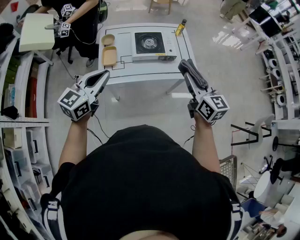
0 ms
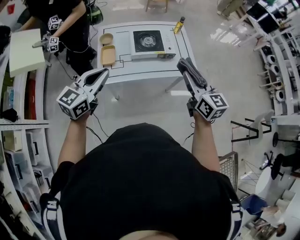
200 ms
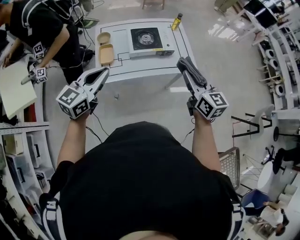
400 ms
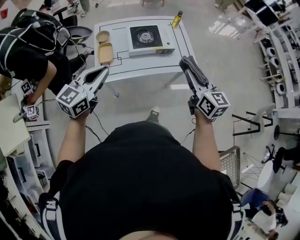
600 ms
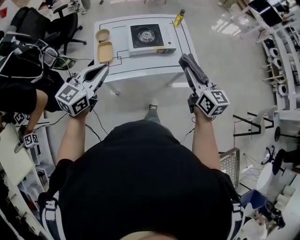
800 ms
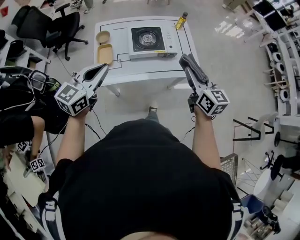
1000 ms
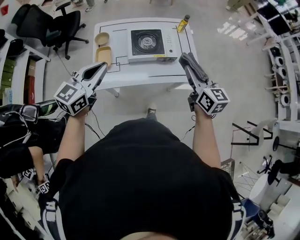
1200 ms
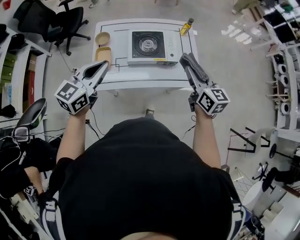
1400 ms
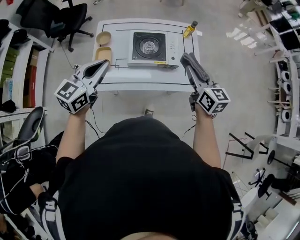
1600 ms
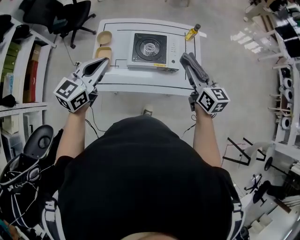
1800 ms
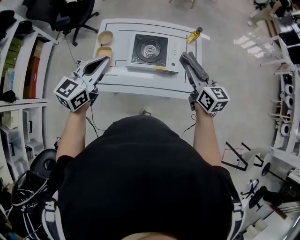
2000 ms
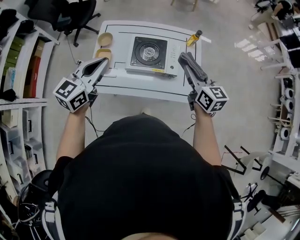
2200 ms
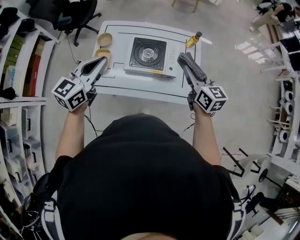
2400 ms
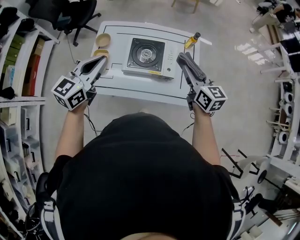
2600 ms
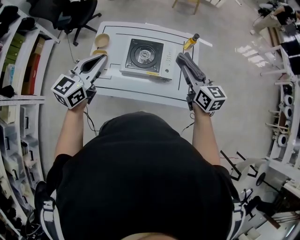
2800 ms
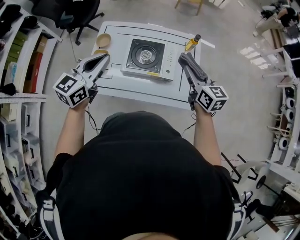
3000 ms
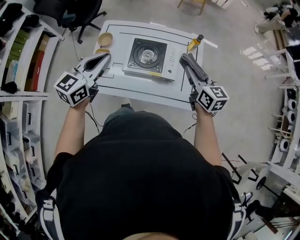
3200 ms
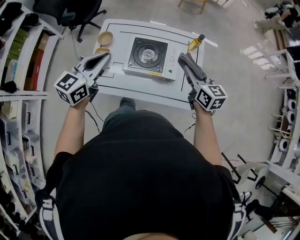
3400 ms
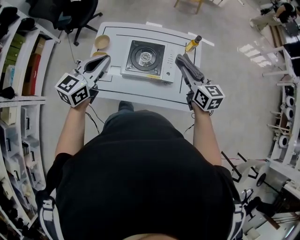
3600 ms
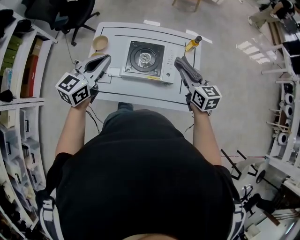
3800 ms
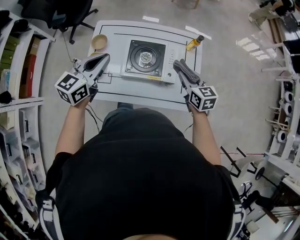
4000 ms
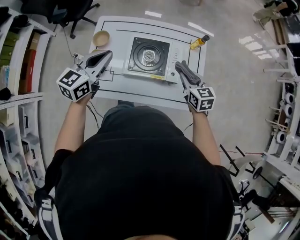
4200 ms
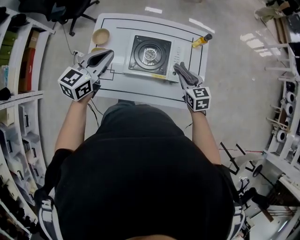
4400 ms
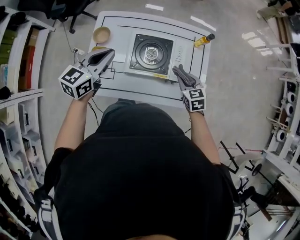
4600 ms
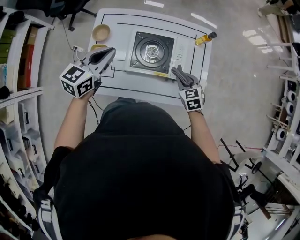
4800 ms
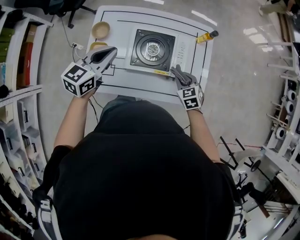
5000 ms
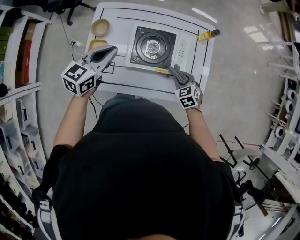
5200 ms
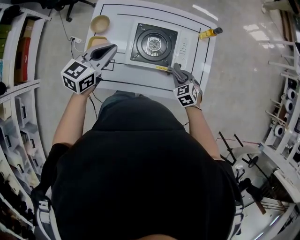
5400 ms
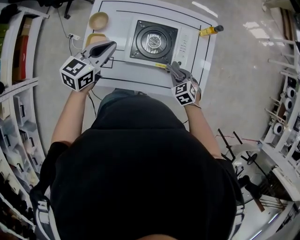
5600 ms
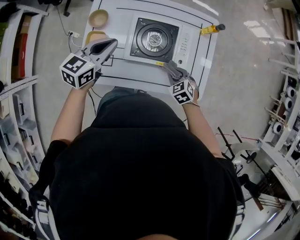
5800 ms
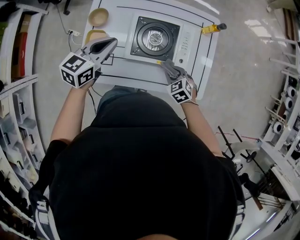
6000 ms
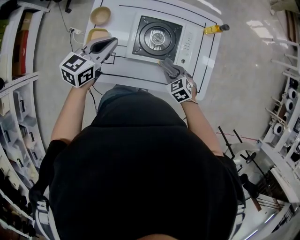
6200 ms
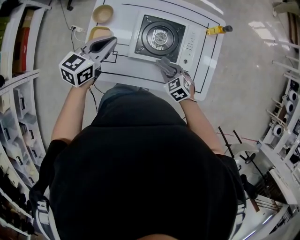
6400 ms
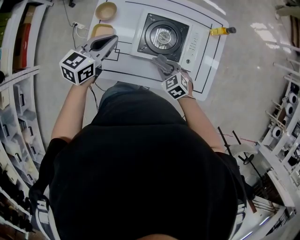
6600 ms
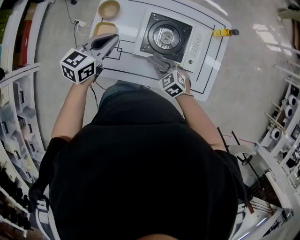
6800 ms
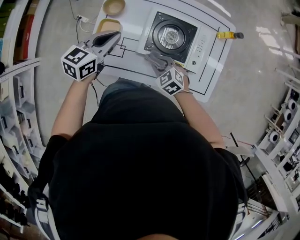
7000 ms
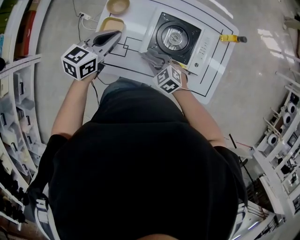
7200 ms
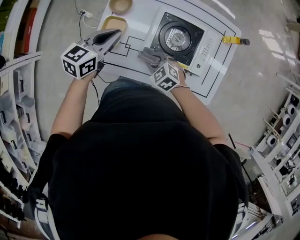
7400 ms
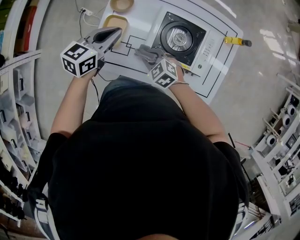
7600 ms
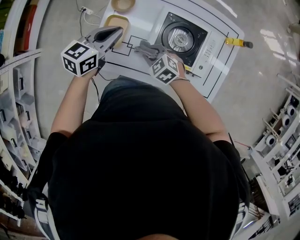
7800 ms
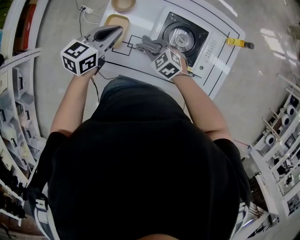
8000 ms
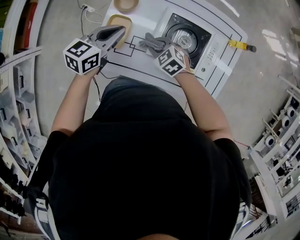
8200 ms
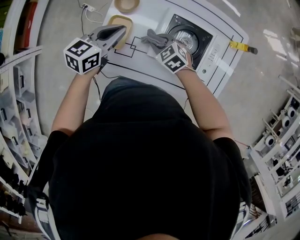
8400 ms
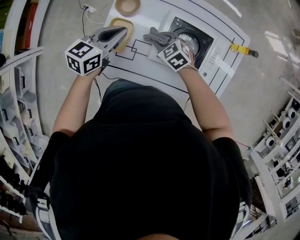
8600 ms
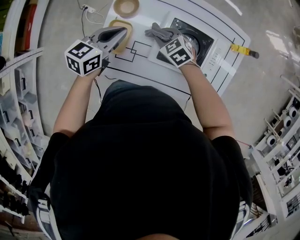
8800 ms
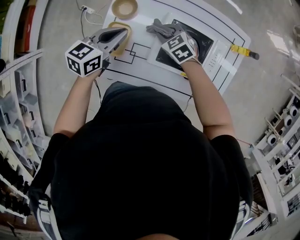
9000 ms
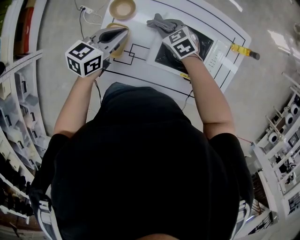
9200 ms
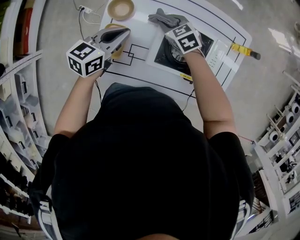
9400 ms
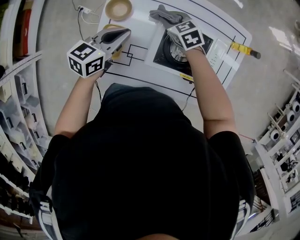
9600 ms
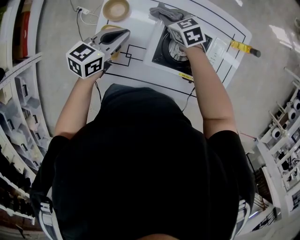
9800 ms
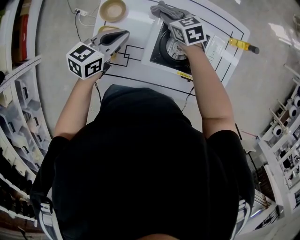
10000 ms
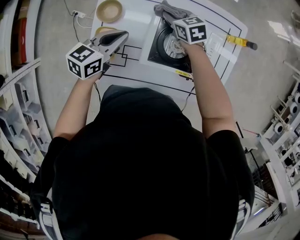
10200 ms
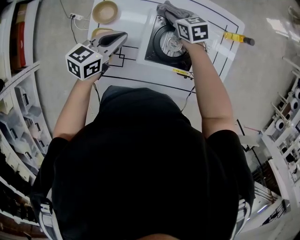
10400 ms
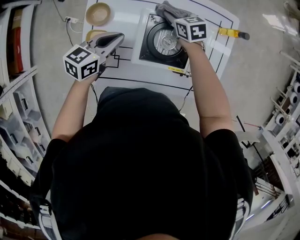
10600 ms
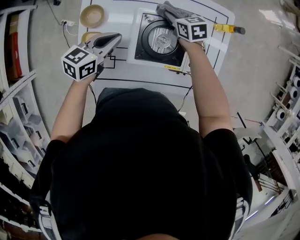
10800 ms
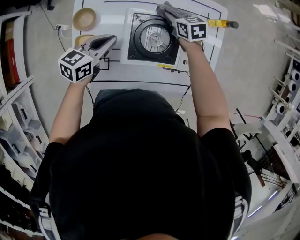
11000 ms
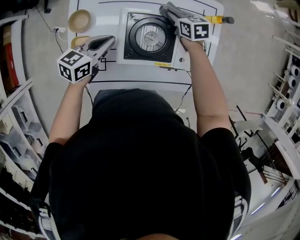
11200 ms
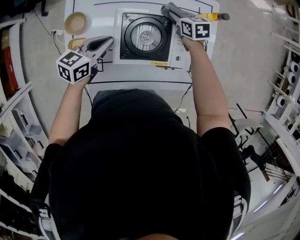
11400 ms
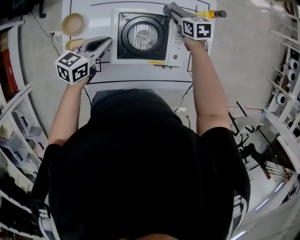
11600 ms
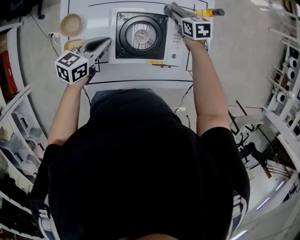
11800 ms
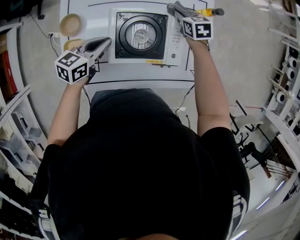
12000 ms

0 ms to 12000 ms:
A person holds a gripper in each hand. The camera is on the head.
0 ms to 1600 ms: Both grippers move forward, roughly 25 cm.
1600 ms to 3000 ms: Both grippers move forward and to the right, about 10 cm.
3000 ms to 4400 ms: The right gripper shifts approximately 15 cm downward, and changes its angle by some 30 degrees. The left gripper heads forward and downward, covering about 15 cm.
4400 ms to 6000 ms: The right gripper heads downward and to the left, covering approximately 15 cm, and turns by some 30 degrees. The left gripper heads downward, covering some 10 cm.
6000 ms to 7600 ms: The left gripper is displaced to the left by roughly 10 cm. Meanwhile the right gripper heads to the left, covering about 20 cm, and rotates some 30 degrees.
7600 ms to 9000 ms: The left gripper heads forward, covering roughly 5 cm. Meanwhile the right gripper shifts about 20 cm forward.
9000 ms to 10400 ms: The left gripper shifts some 5 cm to the right, while the right gripper shifts some 15 cm to the right and forward, and turns by some 30 degrees.
10400 ms to 12000 ms: The left gripper is displaced to the right by some 10 cm, while the right gripper moves to the right, roughly 20 cm.

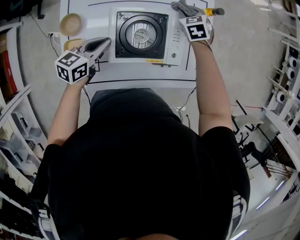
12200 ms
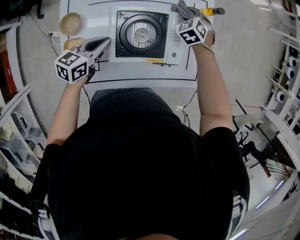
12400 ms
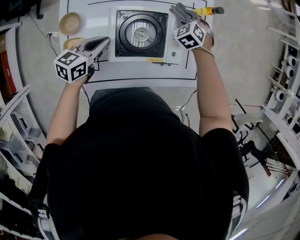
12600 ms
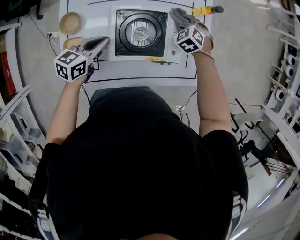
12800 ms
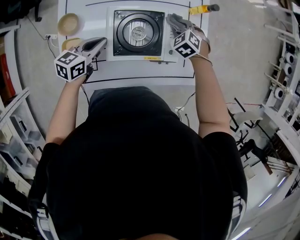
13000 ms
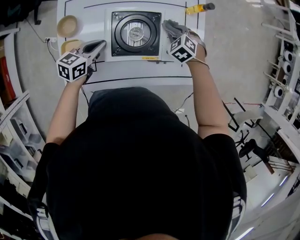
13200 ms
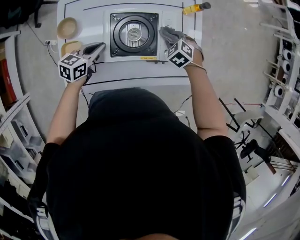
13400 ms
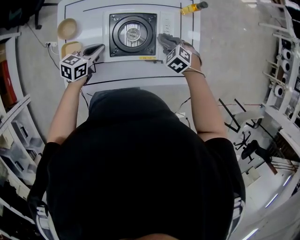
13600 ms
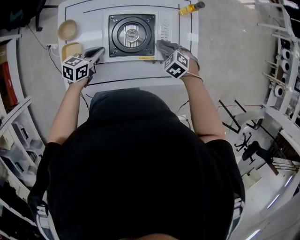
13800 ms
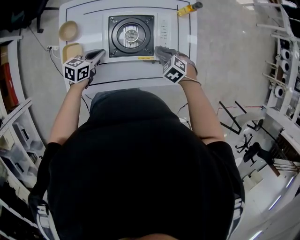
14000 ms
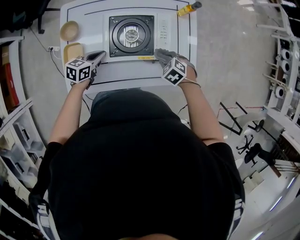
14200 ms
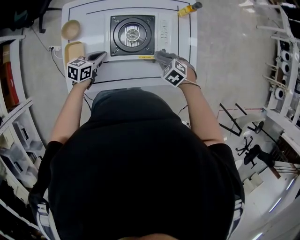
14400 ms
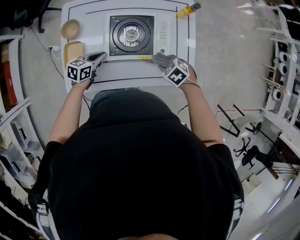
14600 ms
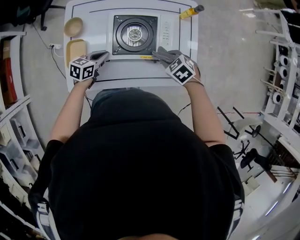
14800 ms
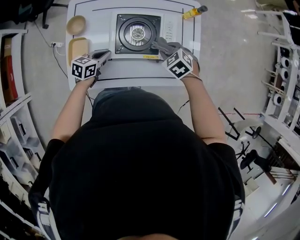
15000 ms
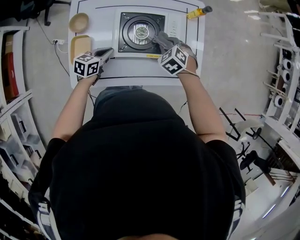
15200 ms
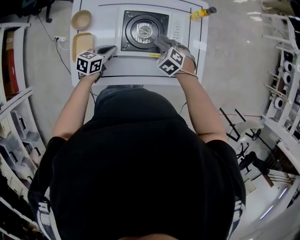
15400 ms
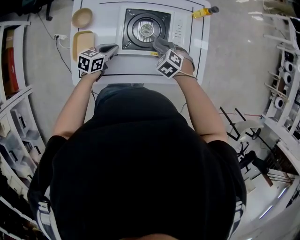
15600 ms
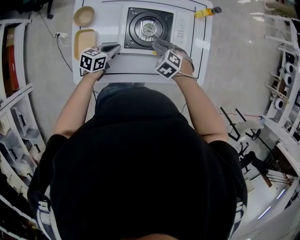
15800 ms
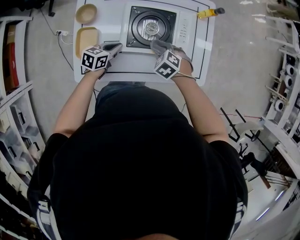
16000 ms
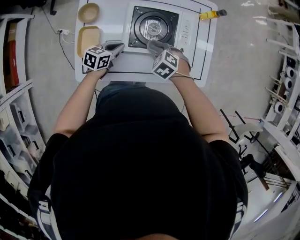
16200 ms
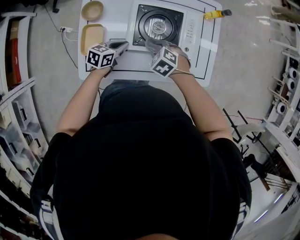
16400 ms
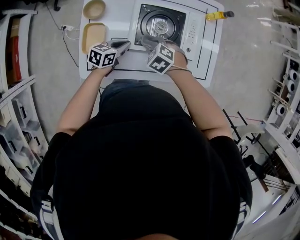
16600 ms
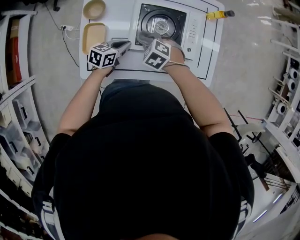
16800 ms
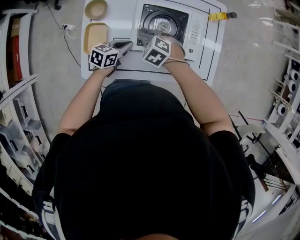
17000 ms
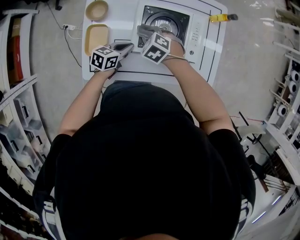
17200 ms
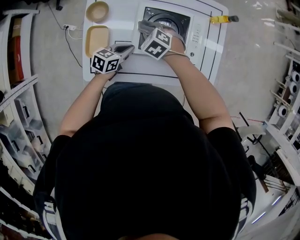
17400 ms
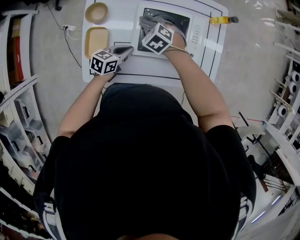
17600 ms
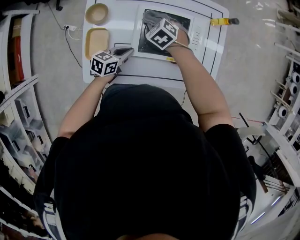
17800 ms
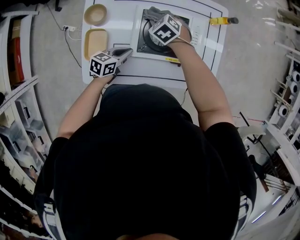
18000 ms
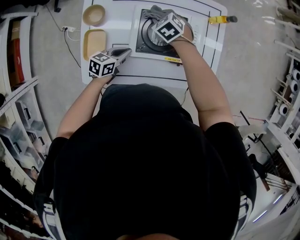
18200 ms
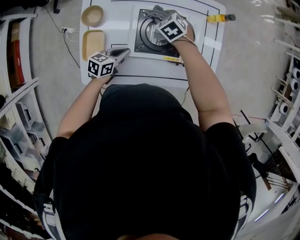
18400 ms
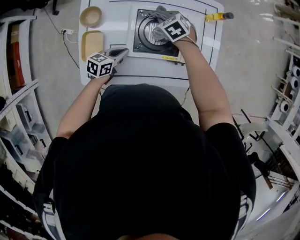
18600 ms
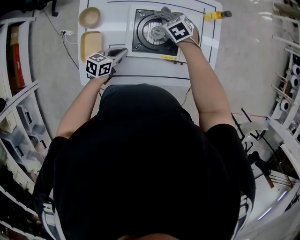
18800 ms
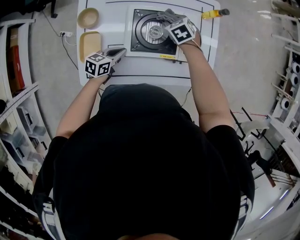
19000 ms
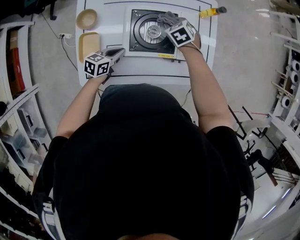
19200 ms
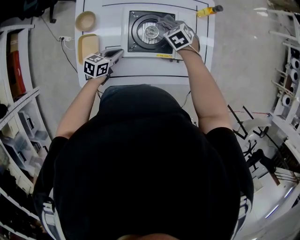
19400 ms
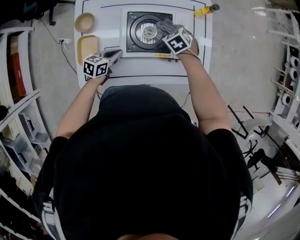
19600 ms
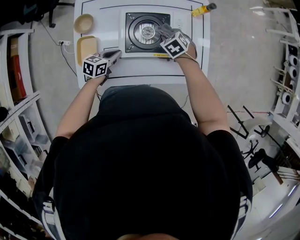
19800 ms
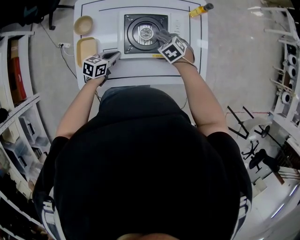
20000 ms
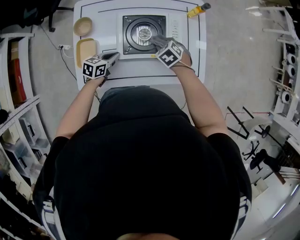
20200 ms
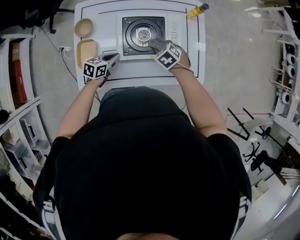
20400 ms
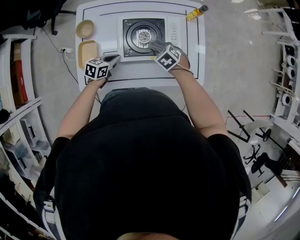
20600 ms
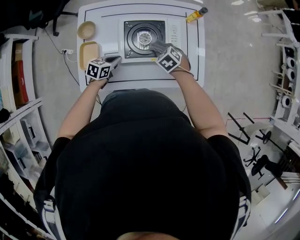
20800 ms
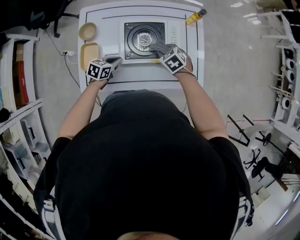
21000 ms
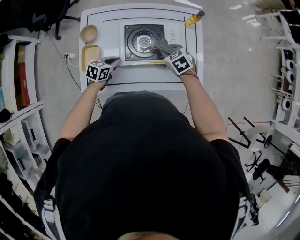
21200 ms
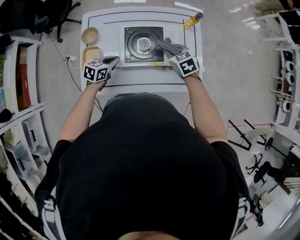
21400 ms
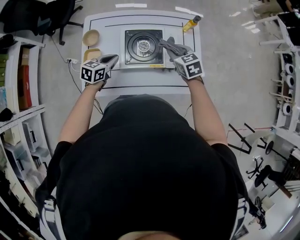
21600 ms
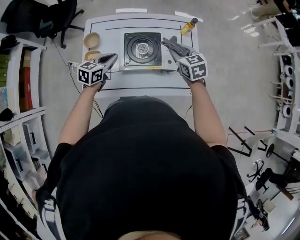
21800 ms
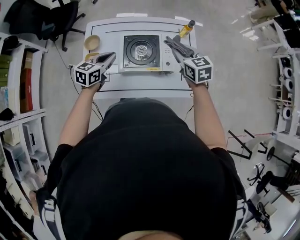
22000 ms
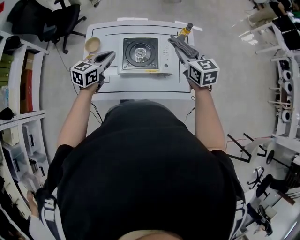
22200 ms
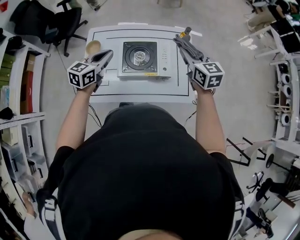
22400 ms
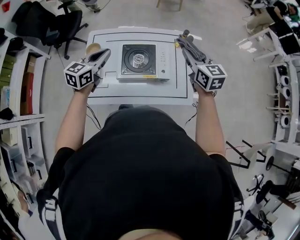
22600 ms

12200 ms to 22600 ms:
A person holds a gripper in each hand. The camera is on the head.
12200 ms to 13600 ms: The left gripper shifts by about 5 cm; the right gripper travels backward by roughly 20 cm, and turns by about 30 degrees.
13600 ms to 15200 ms: The left gripper shifts by roughly 5 cm.
15200 ms to 16600 ms: The right gripper is displaced to the left and backward by about 15 cm.
16600 ms to 18200 ms: The right gripper heads forward, covering about 20 cm.
18200 ms to 19600 ms: The right gripper is displaced to the right by some 15 cm.
19600 ms to 21200 ms: The right gripper moves backward and upward, some 10 cm.
21200 ms to 22600 ms: The right gripper moves upward and to the right, about 30 cm, and points its fingers some 40 degrees further upward. The left gripper is displaced upward by roughly 30 cm, and turns by approximately 30 degrees.

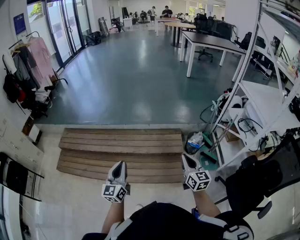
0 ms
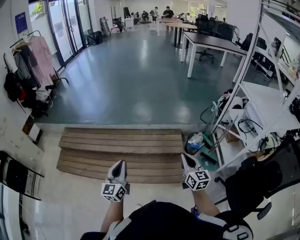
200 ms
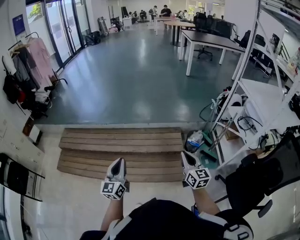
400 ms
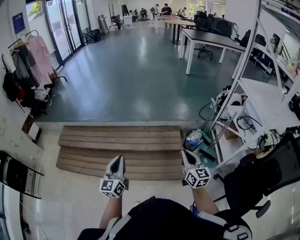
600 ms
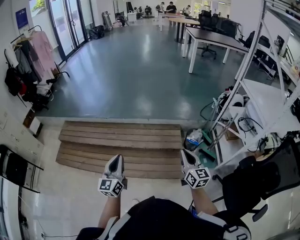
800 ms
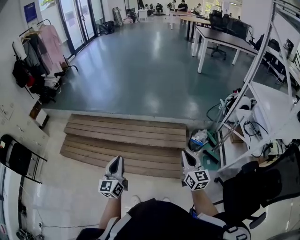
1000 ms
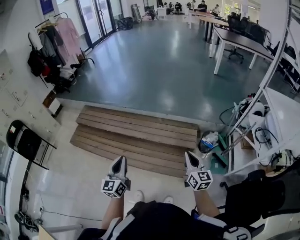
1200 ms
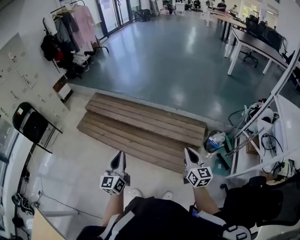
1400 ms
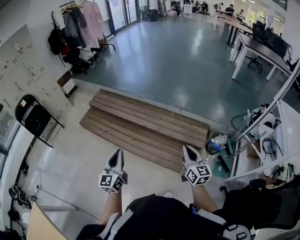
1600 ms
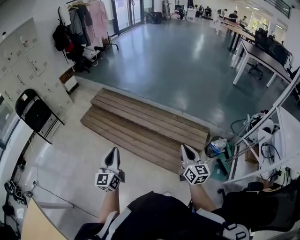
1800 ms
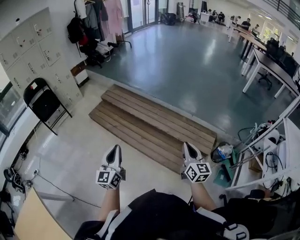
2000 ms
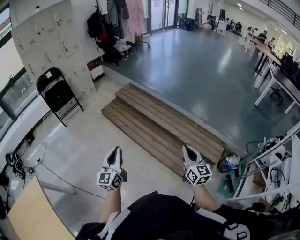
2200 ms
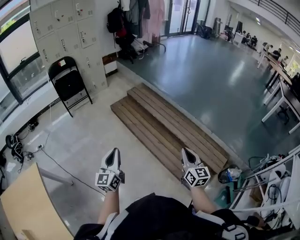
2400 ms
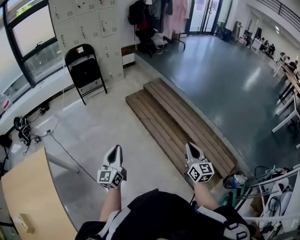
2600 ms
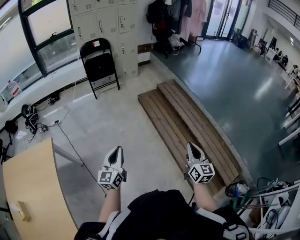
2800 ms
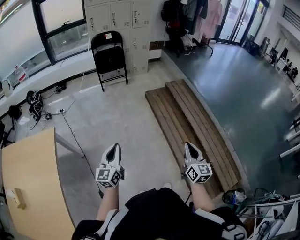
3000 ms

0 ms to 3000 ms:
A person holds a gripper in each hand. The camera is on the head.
0 ms to 1600 ms: The left gripper is displaced backward and to the left by some 15 cm, and turns by some 30 degrees; the right gripper moves to the left, roughly 10 cm, and swivels roughly 20 degrees.
1600 ms to 3000 ms: The pair of grippers is taken about 40 cm. The left gripper turns by about 40 degrees. Meanwhile the right gripper changes its angle by roughly 40 degrees.
